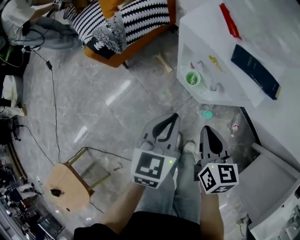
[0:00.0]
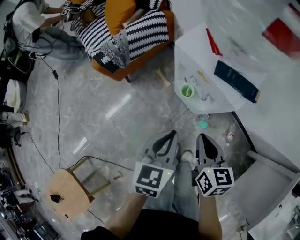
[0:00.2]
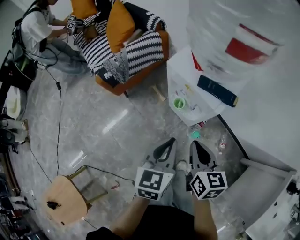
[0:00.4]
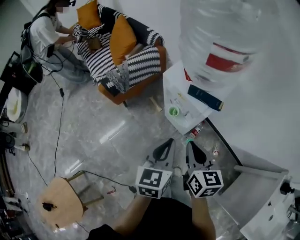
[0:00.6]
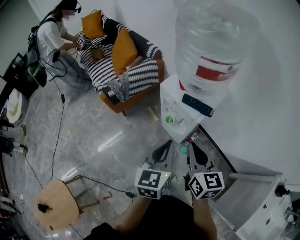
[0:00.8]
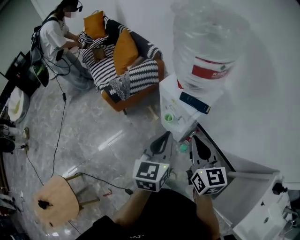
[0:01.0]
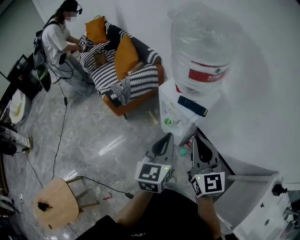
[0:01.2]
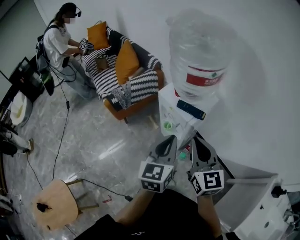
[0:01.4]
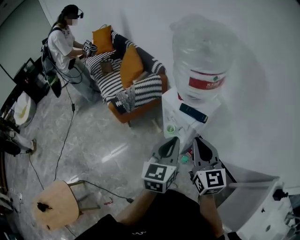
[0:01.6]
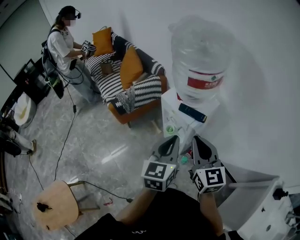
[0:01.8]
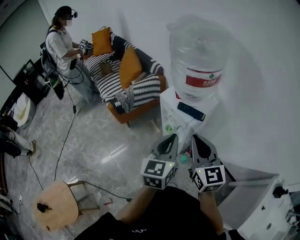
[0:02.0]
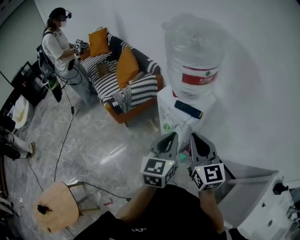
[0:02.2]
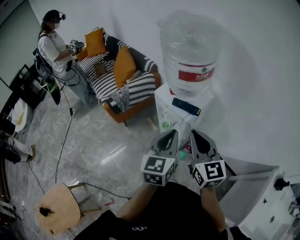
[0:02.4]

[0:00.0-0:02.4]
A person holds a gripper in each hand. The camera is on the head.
0:00.0 to 0:01.2: The two grippers go some 30 cm upward. The left gripper rotates roughly 20 degrees. Meanwhile the right gripper rotates roughly 40 degrees.
0:01.2 to 0:02.4: The grippers move only a little.

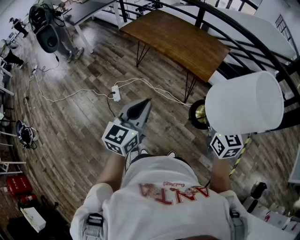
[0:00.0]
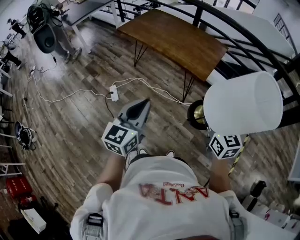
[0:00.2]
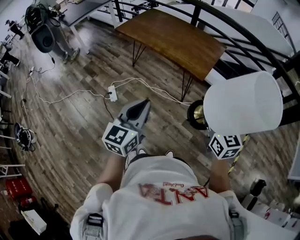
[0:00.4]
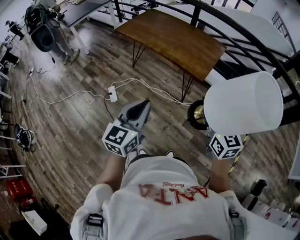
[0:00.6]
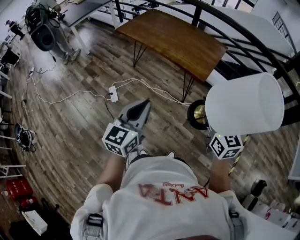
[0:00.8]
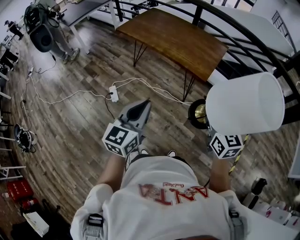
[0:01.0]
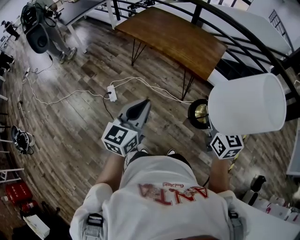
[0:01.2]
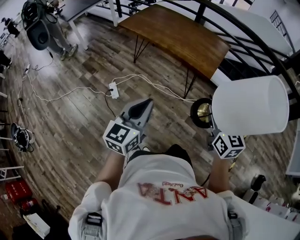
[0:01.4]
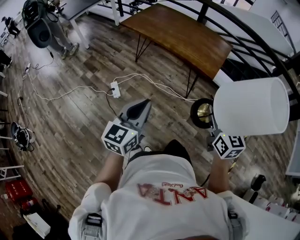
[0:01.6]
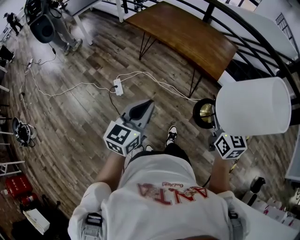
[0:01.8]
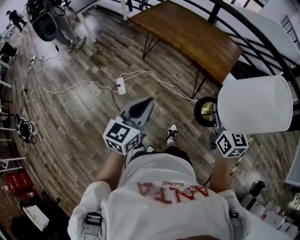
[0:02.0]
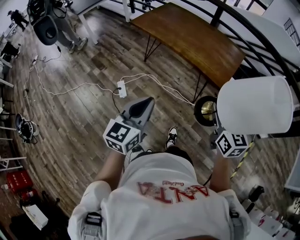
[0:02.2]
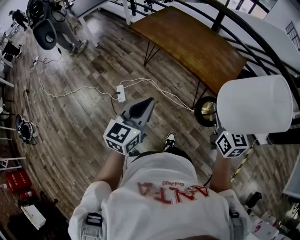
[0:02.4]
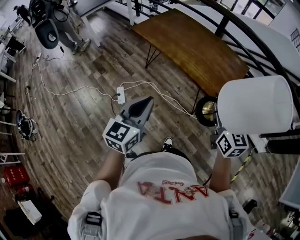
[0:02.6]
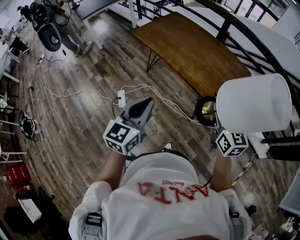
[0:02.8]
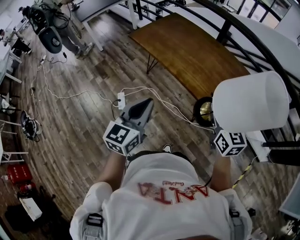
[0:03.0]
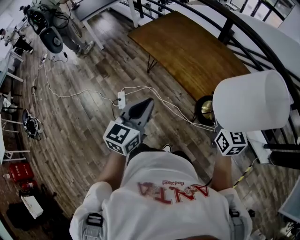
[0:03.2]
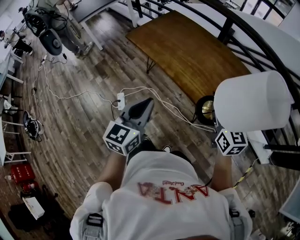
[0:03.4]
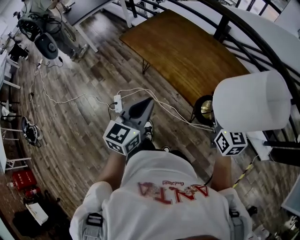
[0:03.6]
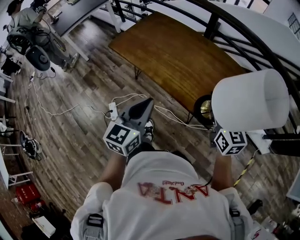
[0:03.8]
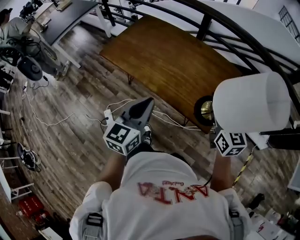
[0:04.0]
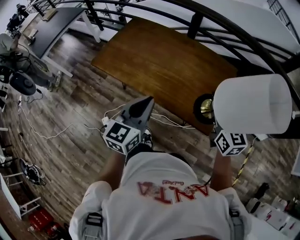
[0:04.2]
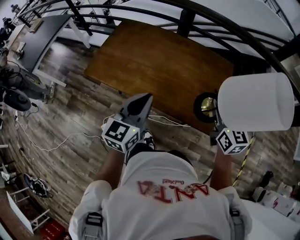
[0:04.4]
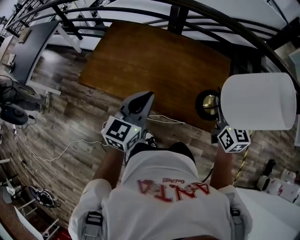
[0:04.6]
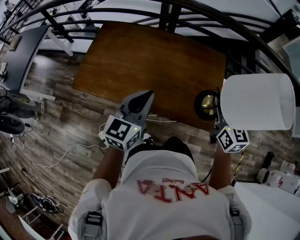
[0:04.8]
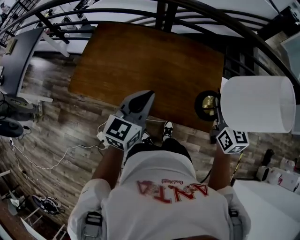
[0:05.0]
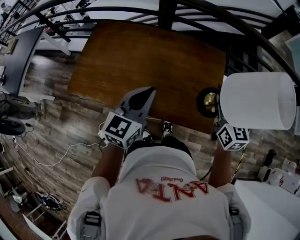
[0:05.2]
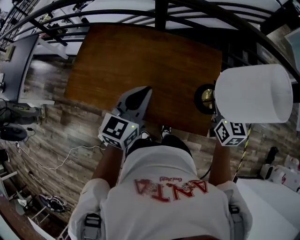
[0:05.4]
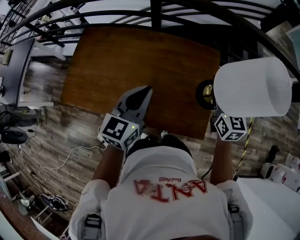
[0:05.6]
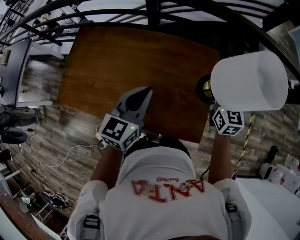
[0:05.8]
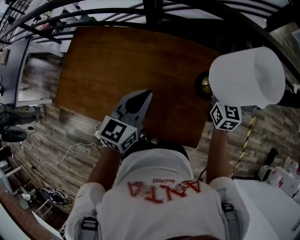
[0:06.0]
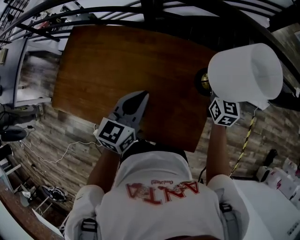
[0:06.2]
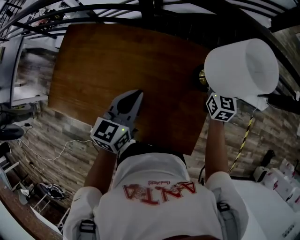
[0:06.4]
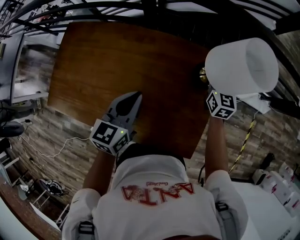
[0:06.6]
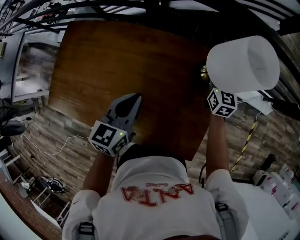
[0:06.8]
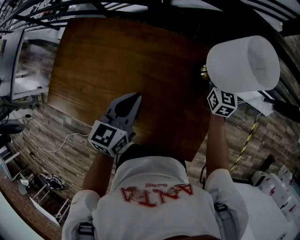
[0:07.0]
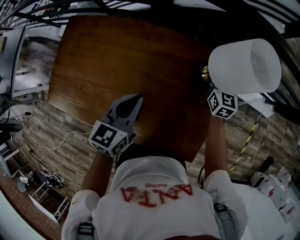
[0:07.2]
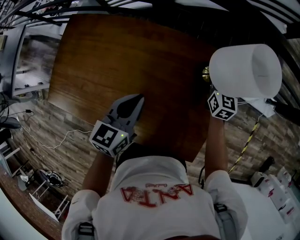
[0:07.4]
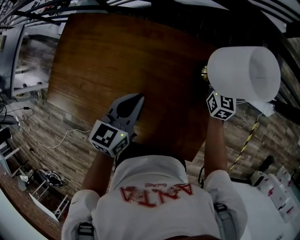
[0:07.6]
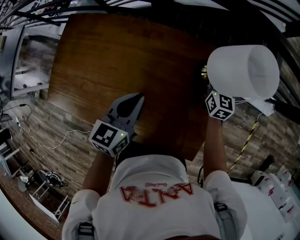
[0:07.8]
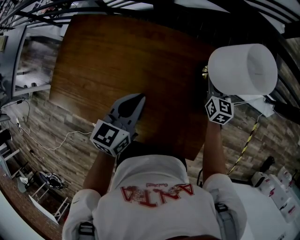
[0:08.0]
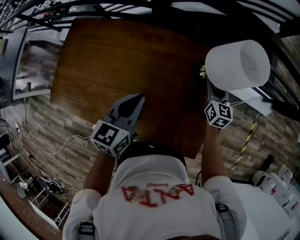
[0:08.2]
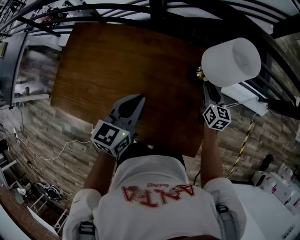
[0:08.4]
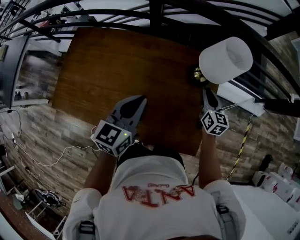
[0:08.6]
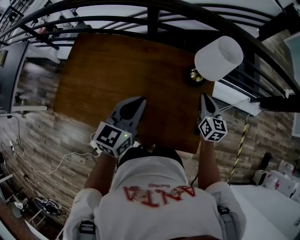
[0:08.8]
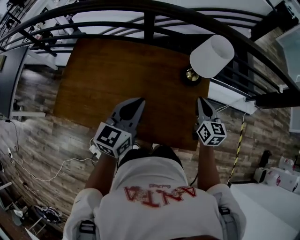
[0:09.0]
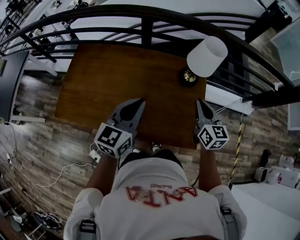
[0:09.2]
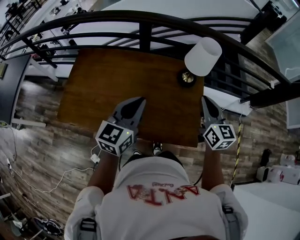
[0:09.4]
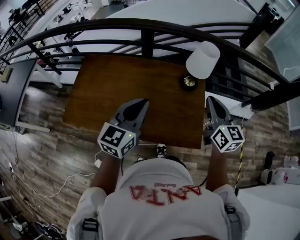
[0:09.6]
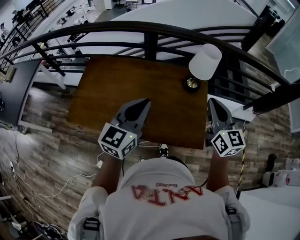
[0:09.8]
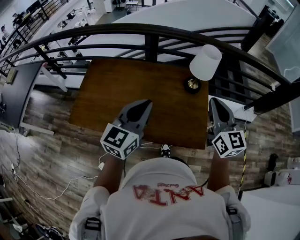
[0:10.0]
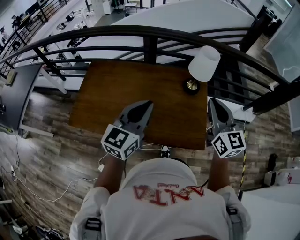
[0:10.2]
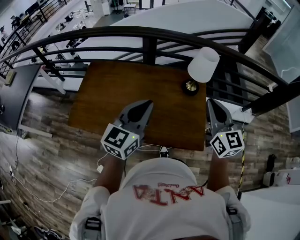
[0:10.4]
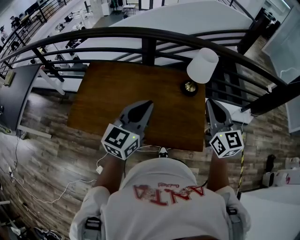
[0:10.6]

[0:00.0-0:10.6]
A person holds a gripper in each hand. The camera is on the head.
0:00.0 to 0:01.6: Both grippers move to the left, some 5 cm.
0:01.6 to 0:03.0: The two grippers go approximately 30 cm forward.
0:03.0 to 0:04.6: The left gripper changes place by roughly 35 cm, and rotates some 30 degrees. Meanwhile the right gripper ends up roughly 25 cm from where it was, and turns by approximately 30 degrees.
0:04.6 to 0:06.0: The left gripper travels forward and to the right by roughly 25 cm; the right gripper heads forward, downward and to the right, covering about 30 cm.
0:06.0 to 0:07.6: The right gripper is displaced downward and forward by some 15 cm. The left gripper is displaced downward by some 10 cm.
0:07.6 to 0:09.0: The left gripper goes about 15 cm upward and backward; the right gripper goes about 25 cm backward and upward.
0:09.0 to 0:10.6: The left gripper goes approximately 15 cm upward and backward. Meanwhile the right gripper moves upward and backward, roughly 25 cm, and rotates about 20 degrees.

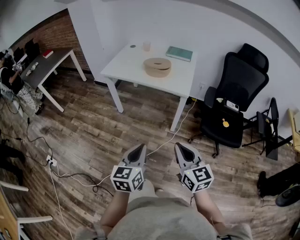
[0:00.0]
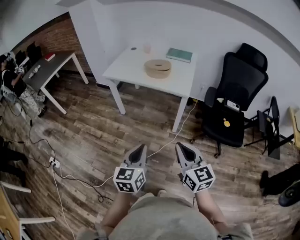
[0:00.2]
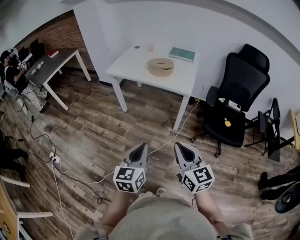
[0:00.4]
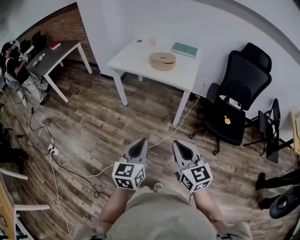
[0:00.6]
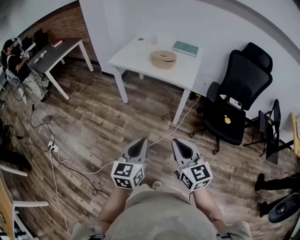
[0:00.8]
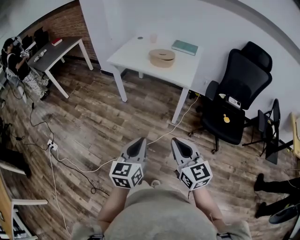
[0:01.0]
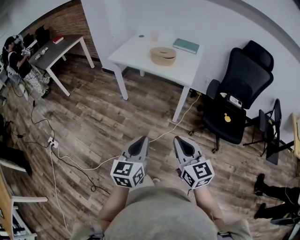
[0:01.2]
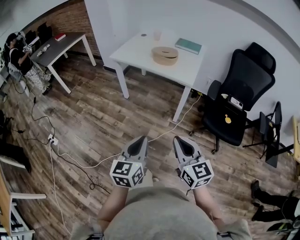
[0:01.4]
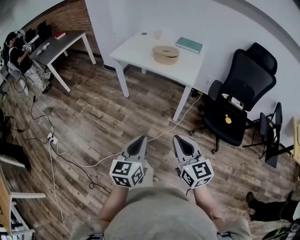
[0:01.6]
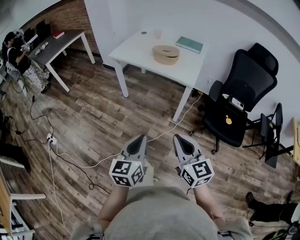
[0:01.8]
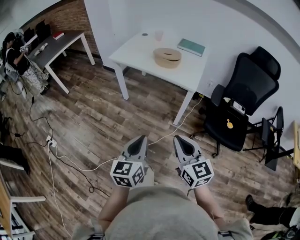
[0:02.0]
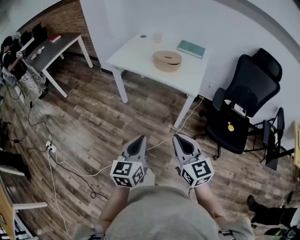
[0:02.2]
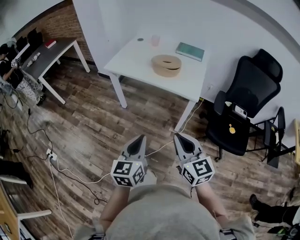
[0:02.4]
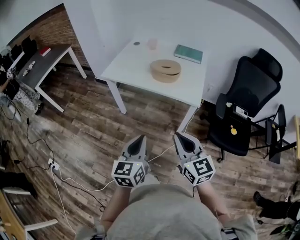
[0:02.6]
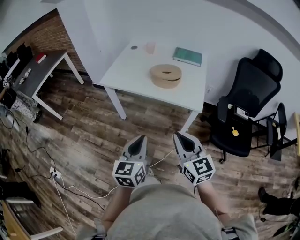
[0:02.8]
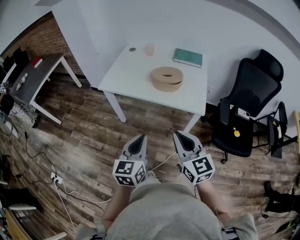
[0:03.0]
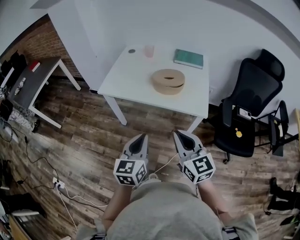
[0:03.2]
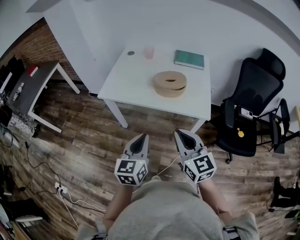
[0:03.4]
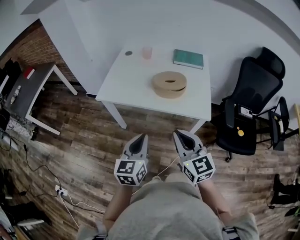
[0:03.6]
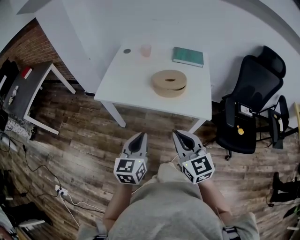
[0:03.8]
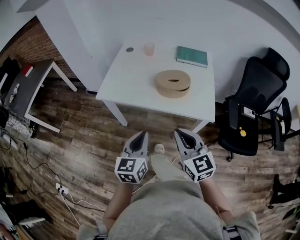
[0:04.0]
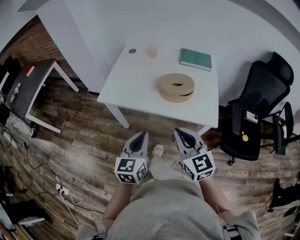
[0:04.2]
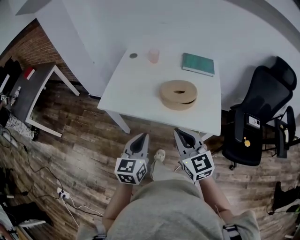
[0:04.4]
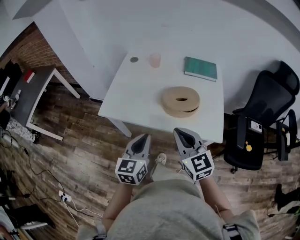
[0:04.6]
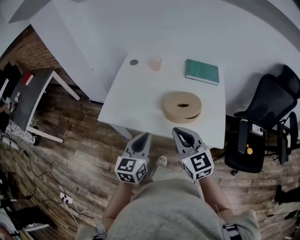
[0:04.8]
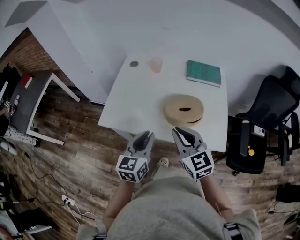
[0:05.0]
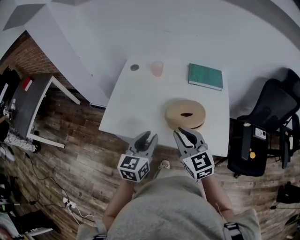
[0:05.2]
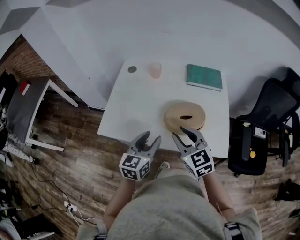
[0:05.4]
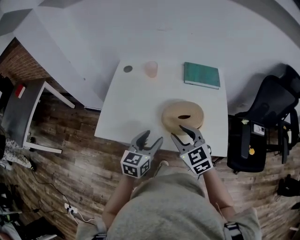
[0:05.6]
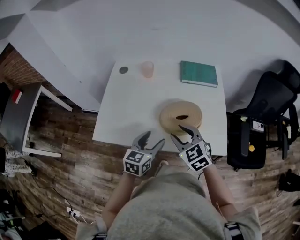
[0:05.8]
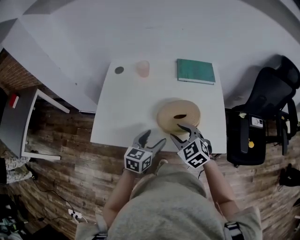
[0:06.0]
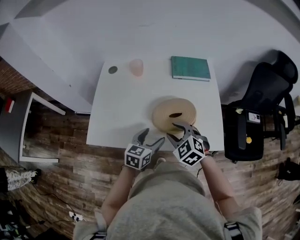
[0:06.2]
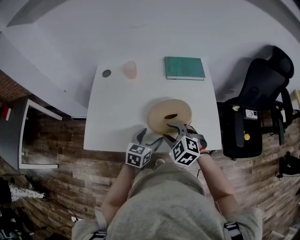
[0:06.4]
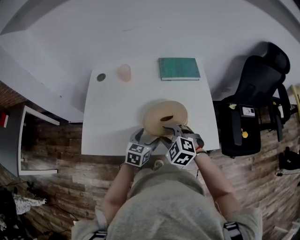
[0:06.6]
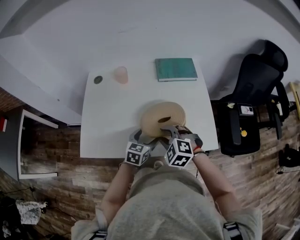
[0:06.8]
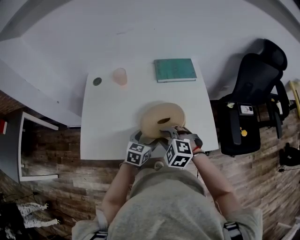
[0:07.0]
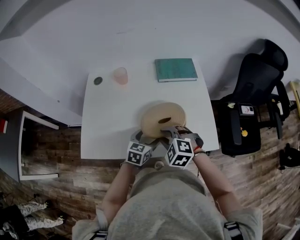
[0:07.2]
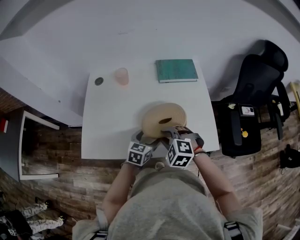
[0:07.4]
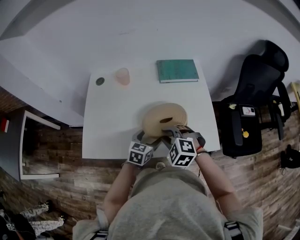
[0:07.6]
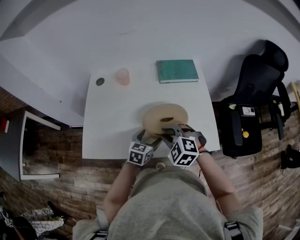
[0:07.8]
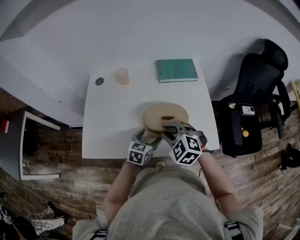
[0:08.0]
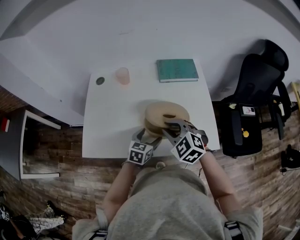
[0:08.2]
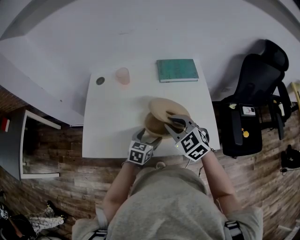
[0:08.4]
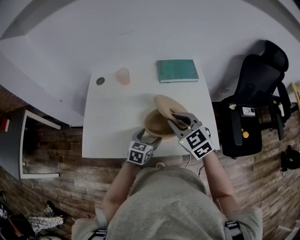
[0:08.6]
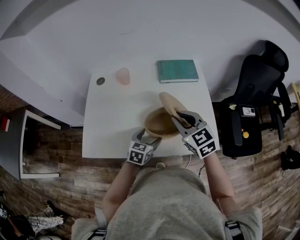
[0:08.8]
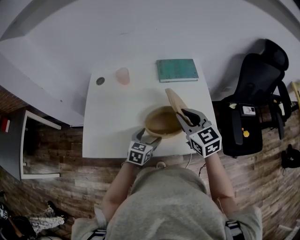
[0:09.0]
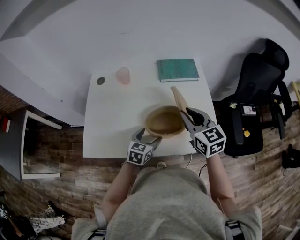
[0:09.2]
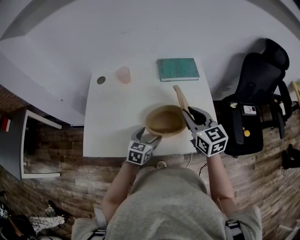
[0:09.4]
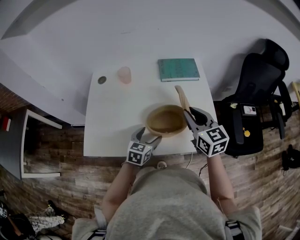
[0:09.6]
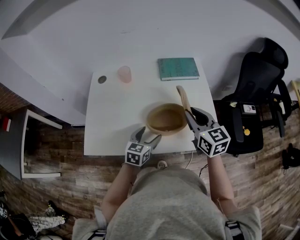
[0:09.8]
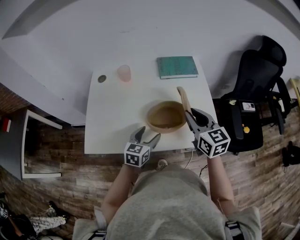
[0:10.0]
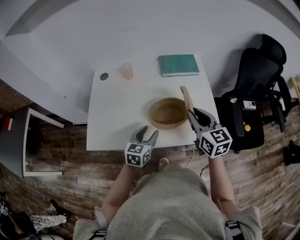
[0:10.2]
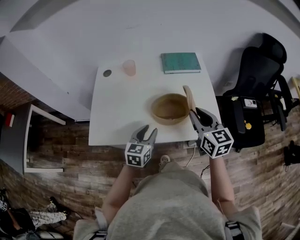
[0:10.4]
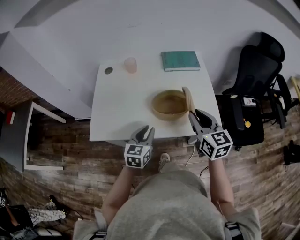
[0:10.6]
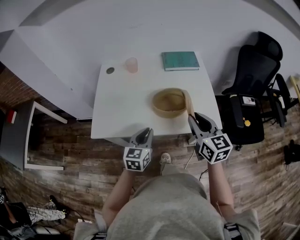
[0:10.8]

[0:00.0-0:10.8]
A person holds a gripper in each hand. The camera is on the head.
0:00.0 to 0:01.6: Both grippers move backward, about 5 cm.
0:01.6 to 0:03.0: Both grippers move forward, about 30 cm.
0:03.0 to 0:04.6: Both grippers travel together forward, some 25 cm.
0:04.6 to 0:06.2: Both grippers move forward and downward, about 20 cm. The right gripper tilts its fingers about 30 degrees downward, and opens its fingers. Meanwhile the left gripper swivels some 30 degrees, and opens its fingers.
0:06.2 to 0:07.8: The right gripper closes its fingers; the left gripper changes place by about 5 cm.
0:07.8 to 0:09.2: The right gripper heads to the right, upward and forward, covering about 15 cm, and rotates around the line of its fingers by some 40 degrees, clockwise from behind.
0:09.2 to 0:10.8: The right gripper travels backward by some 15 cm. The left gripper travels backward and upward by roughly 15 cm, and closes.
